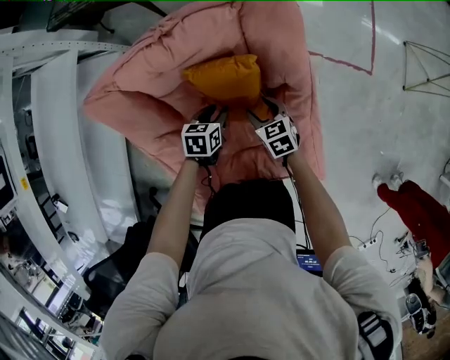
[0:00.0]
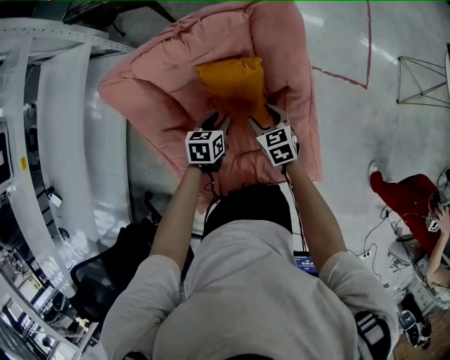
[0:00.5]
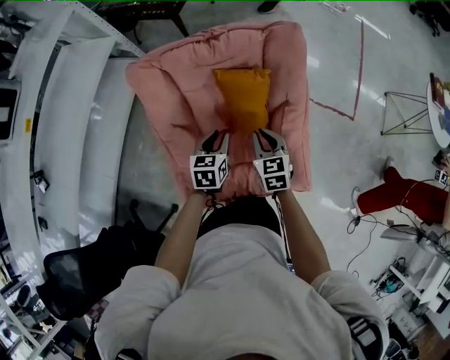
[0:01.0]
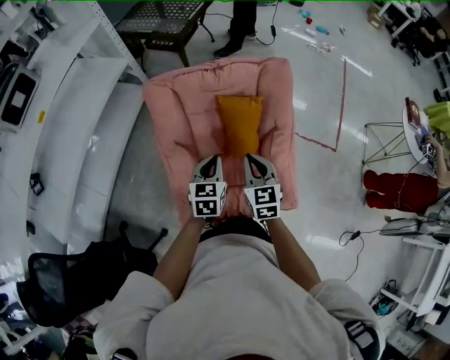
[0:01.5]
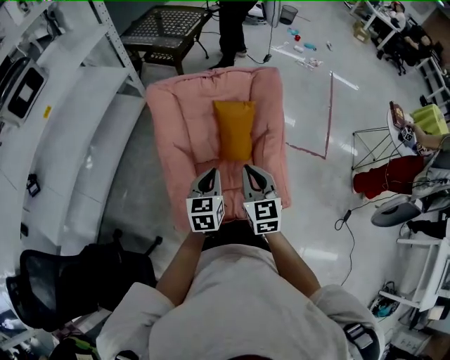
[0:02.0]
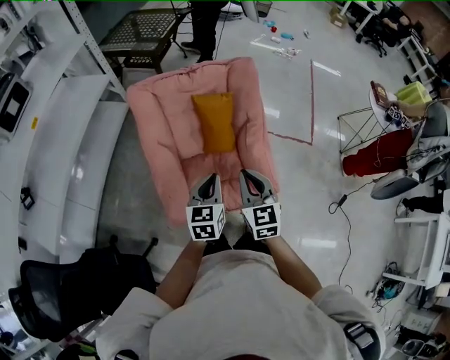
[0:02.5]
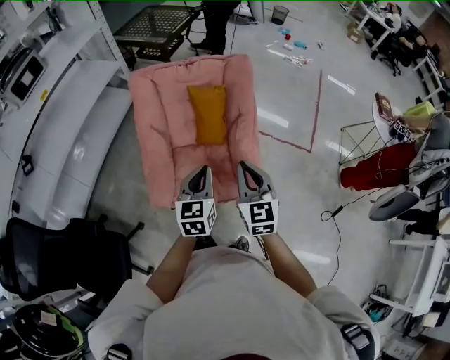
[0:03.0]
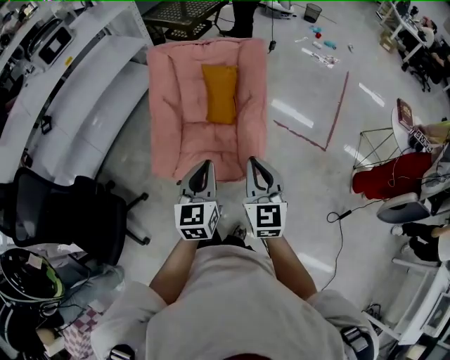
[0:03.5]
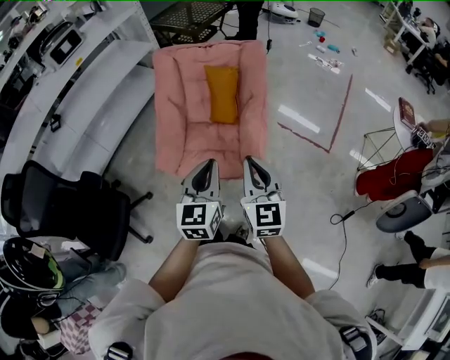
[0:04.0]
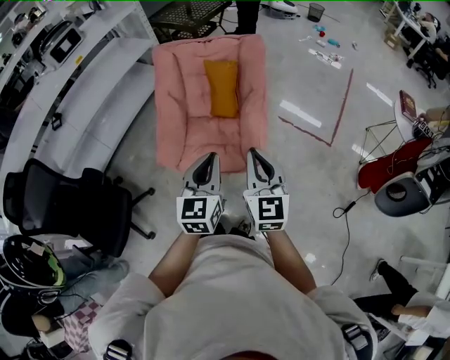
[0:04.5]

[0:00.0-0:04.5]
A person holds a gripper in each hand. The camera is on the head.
0:00.0 to 0:02.0: Both grippers travel together upward and backward, about 40 cm. The right gripper swivels roughly 30 degrees, and closes up, while the left gripper changes its angle by some 40 degrees, and closes its fingers.
0:02.0 to 0:04.5: The grippers both shift backward and to the right by roughly 35 cm.

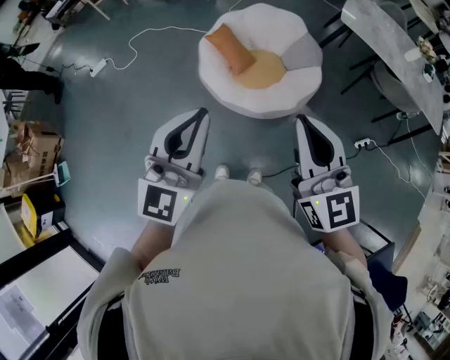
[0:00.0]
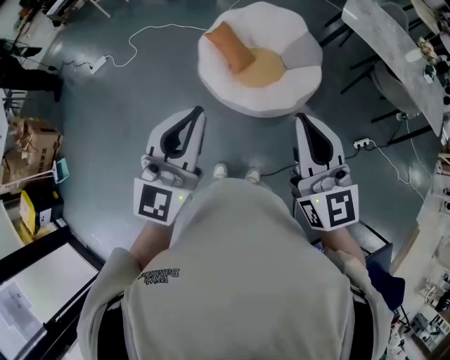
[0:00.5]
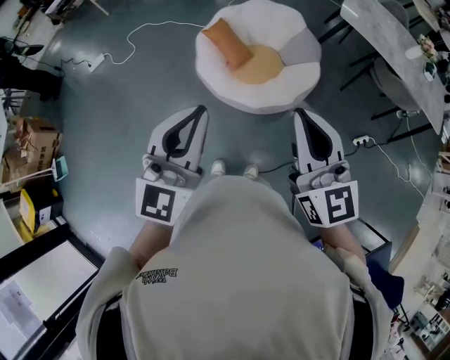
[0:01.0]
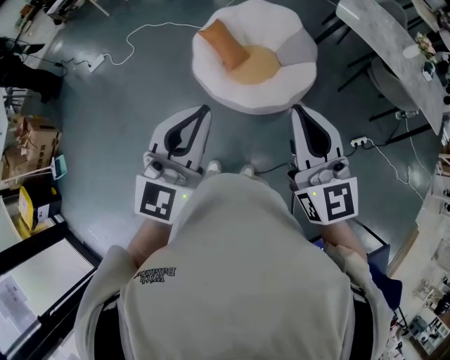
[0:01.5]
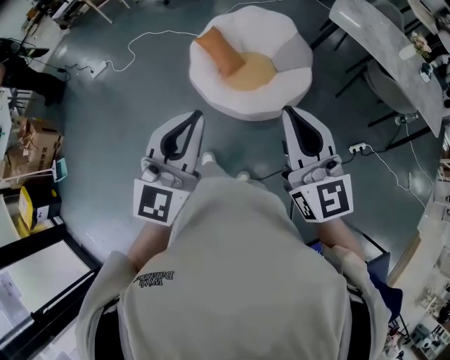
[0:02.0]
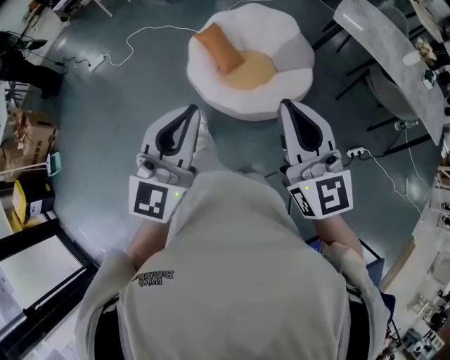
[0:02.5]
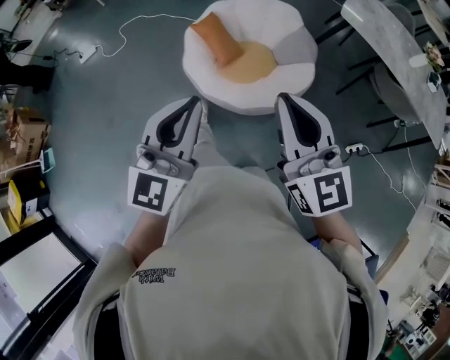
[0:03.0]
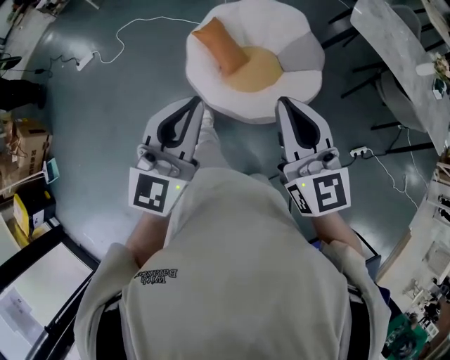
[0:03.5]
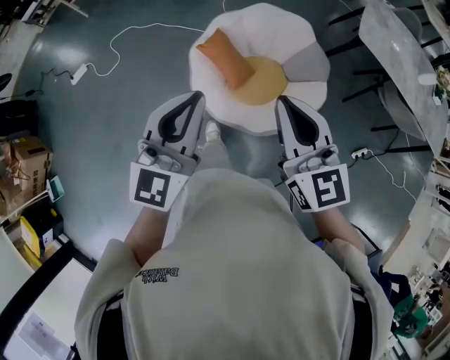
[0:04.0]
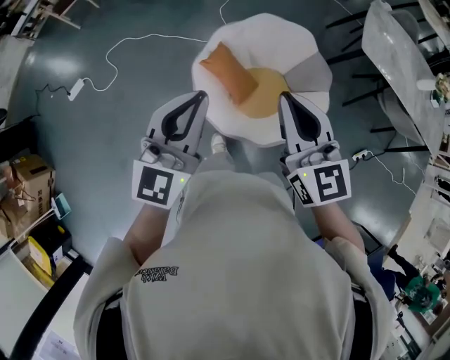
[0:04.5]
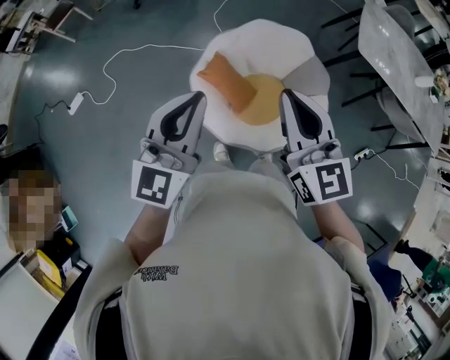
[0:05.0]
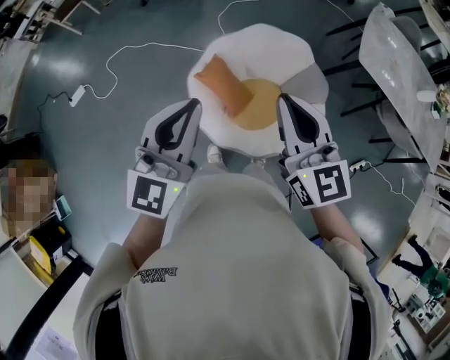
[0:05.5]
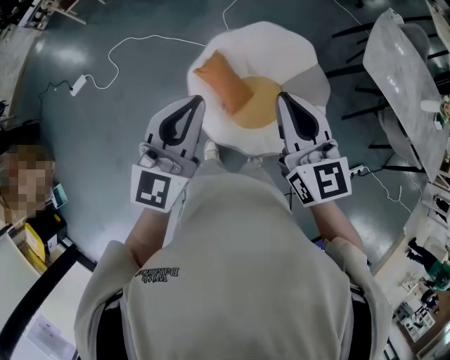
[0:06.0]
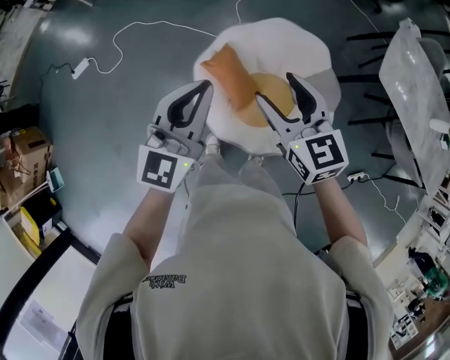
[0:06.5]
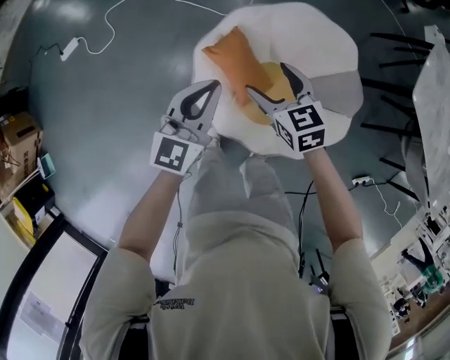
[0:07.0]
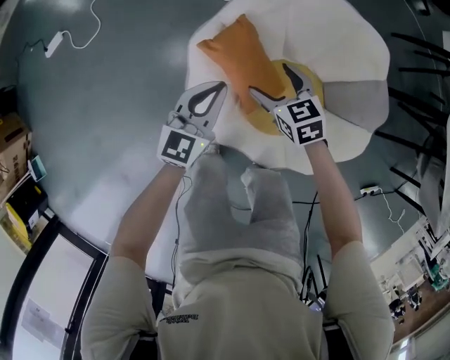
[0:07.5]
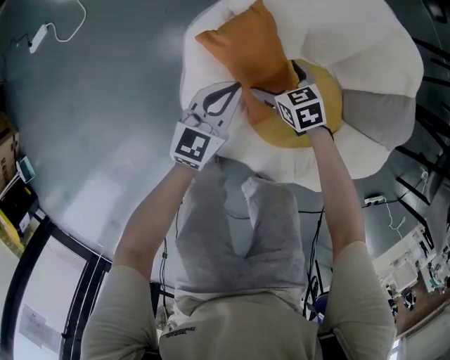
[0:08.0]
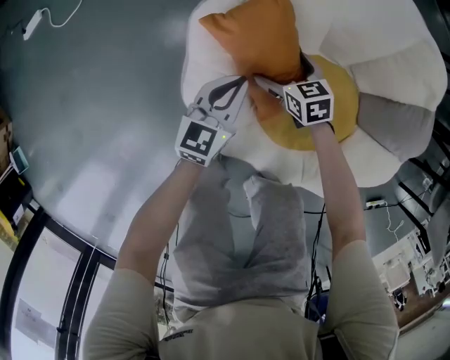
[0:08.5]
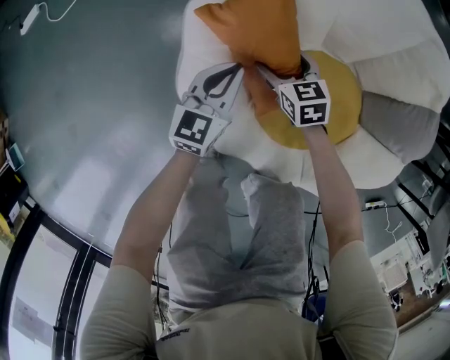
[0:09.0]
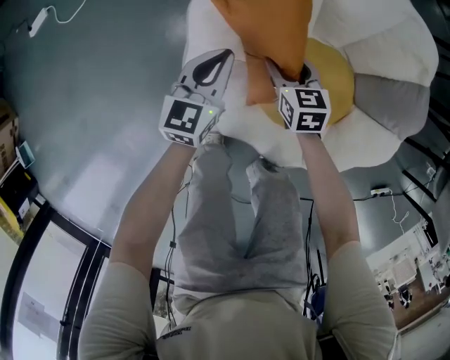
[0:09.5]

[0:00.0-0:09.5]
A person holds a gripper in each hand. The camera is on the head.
0:00.0 to 0:02.0: The grippers both shift to the right by approximately 10 cm.
0:02.0 to 0:04.0: The right gripper shifts approximately 35 cm forward and to the left, while the left gripper heads forward, covering some 35 cm.
0:04.0 to 0:05.5: The grippers both shift forward by approximately 15 cm.
0:05.5 to 0:07.5: Both grippers travel together downward, roughly 50 cm. The left gripper rotates about 20 degrees. Meanwhile the right gripper tilts its fingers some 40 degrees downward, and opens.
0:07.5 to 0:09.5: The grippers both shift downward by some 15 cm.

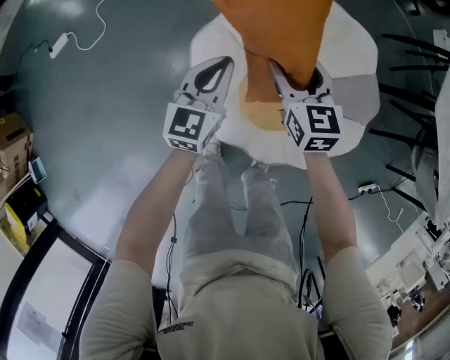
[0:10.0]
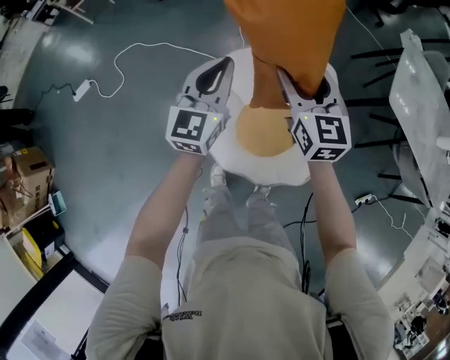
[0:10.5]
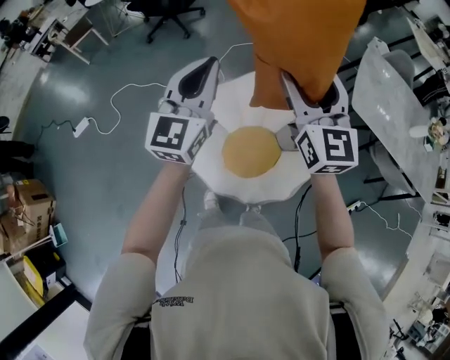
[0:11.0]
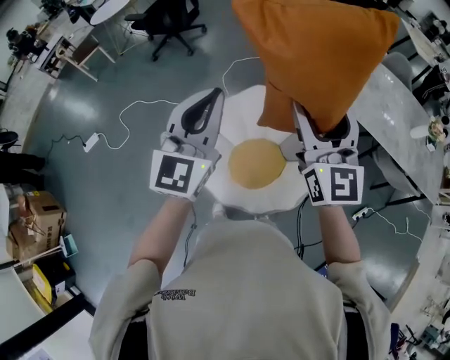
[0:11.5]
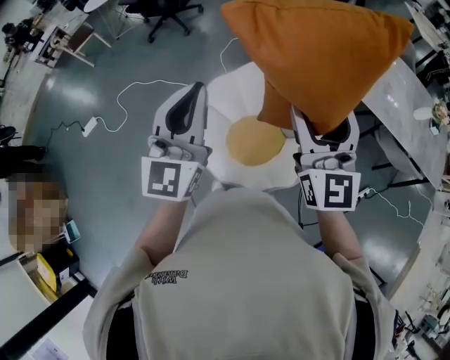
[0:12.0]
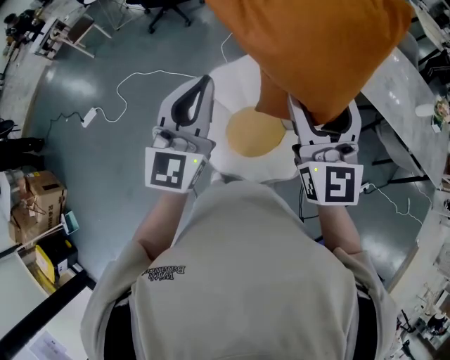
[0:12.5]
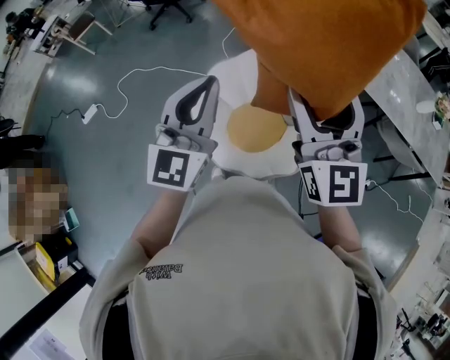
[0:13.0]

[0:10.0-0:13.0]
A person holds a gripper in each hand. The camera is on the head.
0:10.0 to 0:11.5: Both grippers travel together upward, about 50 cm. The right gripper angles its fingers upward, by about 30 degrees, while the left gripper turns by some 30 degrees.
0:11.5 to 0:13.0: The two grippers go roughly 10 cm backward.

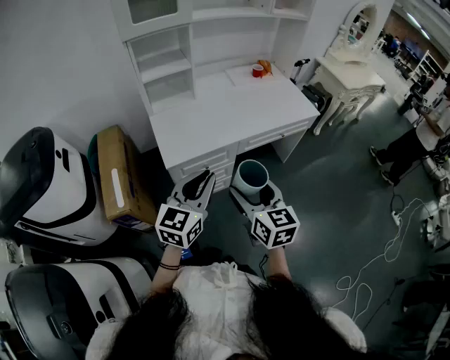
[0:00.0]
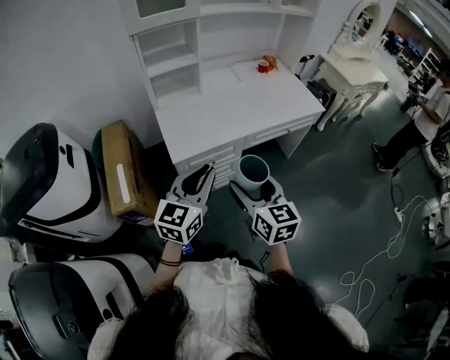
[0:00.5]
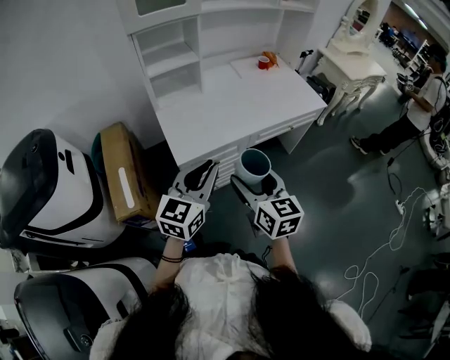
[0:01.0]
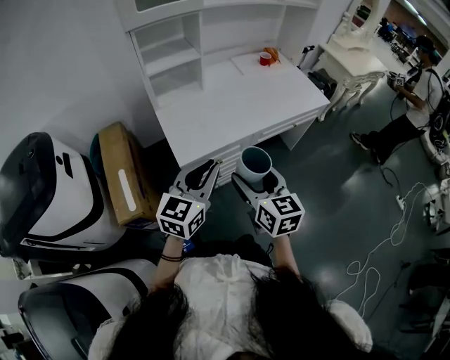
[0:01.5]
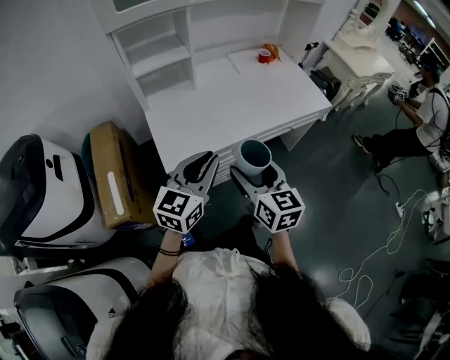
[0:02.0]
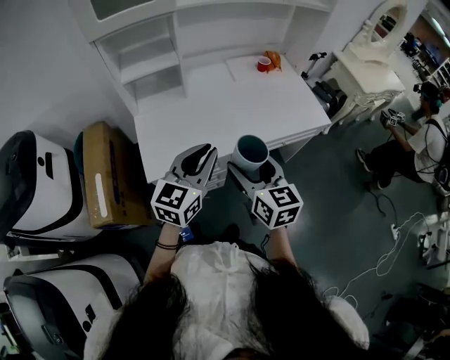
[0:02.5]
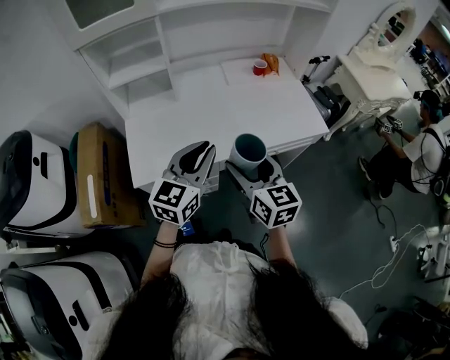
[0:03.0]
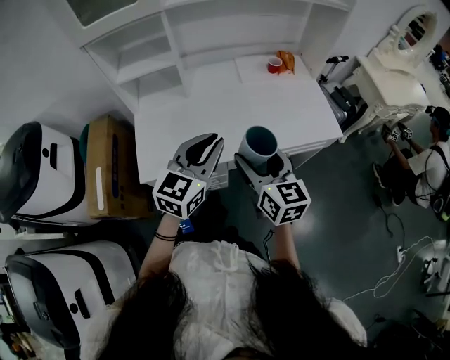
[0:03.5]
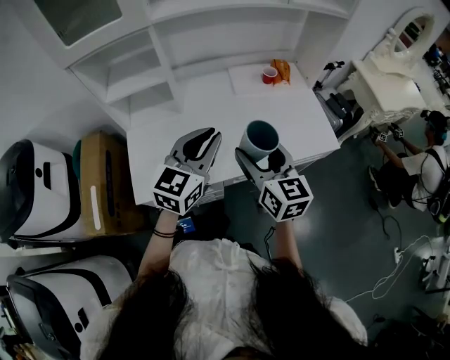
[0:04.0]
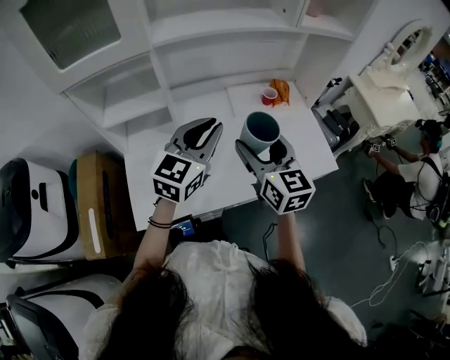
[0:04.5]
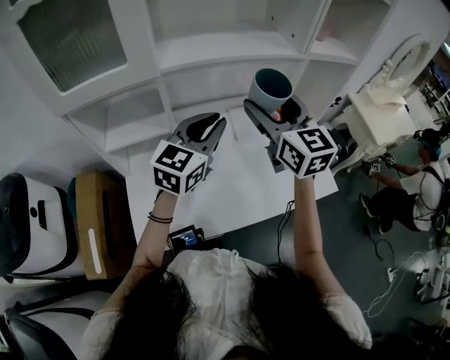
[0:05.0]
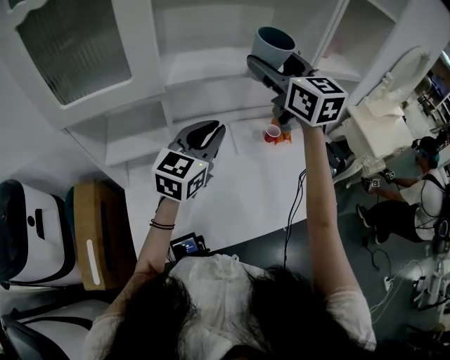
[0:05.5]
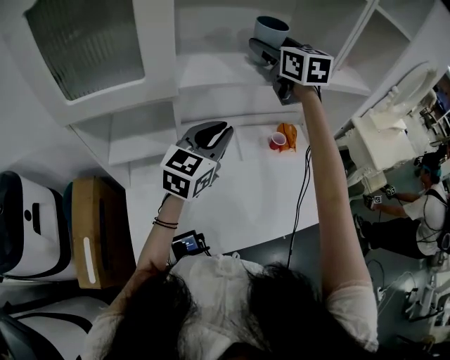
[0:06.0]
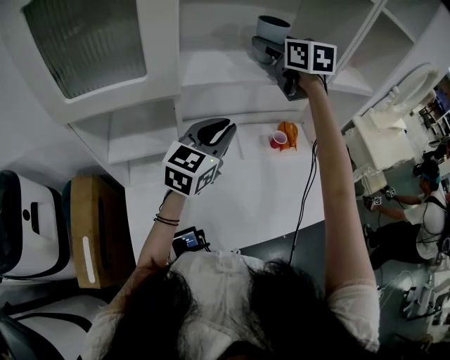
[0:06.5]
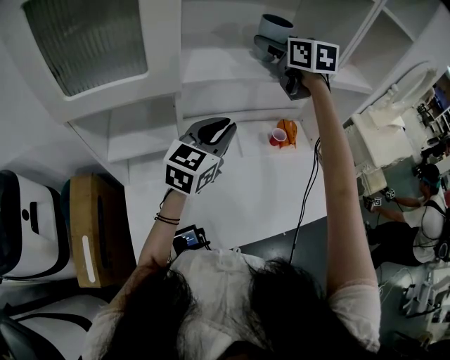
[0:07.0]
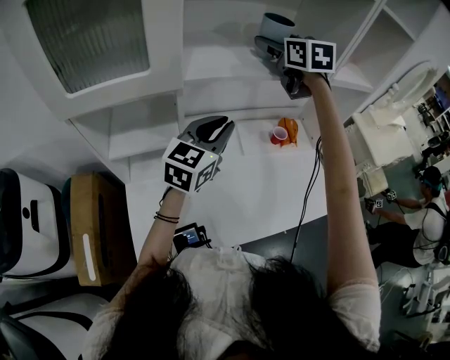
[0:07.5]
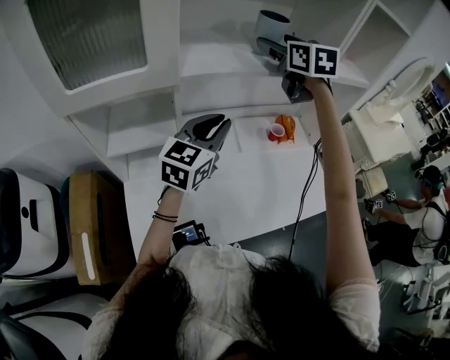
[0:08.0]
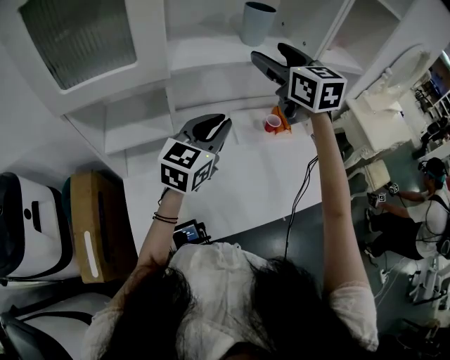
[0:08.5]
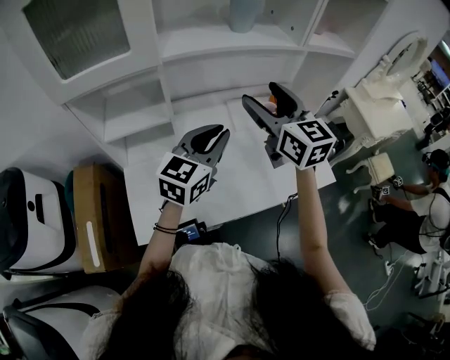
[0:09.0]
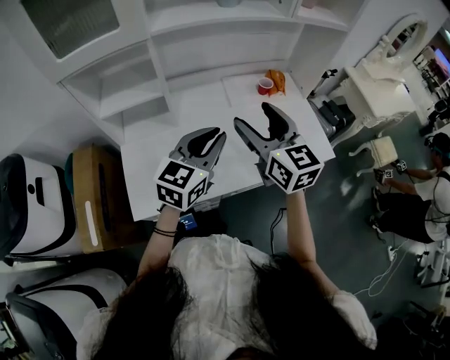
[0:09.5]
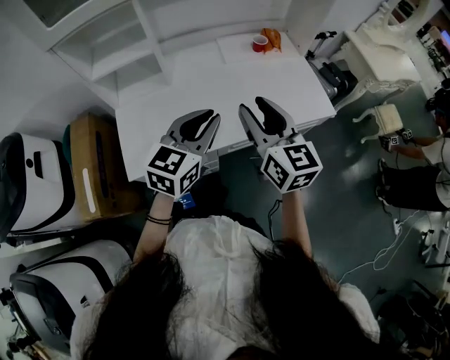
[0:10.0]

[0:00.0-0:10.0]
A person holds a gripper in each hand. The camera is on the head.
0:00.0 to 0:02.0: The grippers both shift forward by about 10 cm.
0:02.0 to 0:04.0: Both grippers move forward and to the right, approximately 30 cm.
0:04.0 to 0:06.0: The left gripper heads forward, covering approximately 25 cm, while the right gripper is displaced forward and upward by about 50 cm.
0:06.0 to 0:08.0: There are only small adjustments of the grippers.
0:08.0 to 0:10.0: The right gripper is displaced backward and downward by roughly 50 cm, and closes; the left gripper shifts about 25 cm backward.
